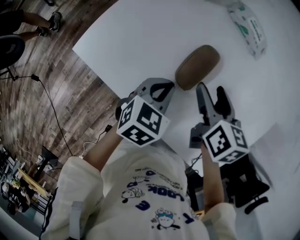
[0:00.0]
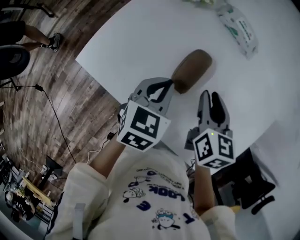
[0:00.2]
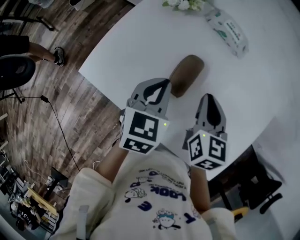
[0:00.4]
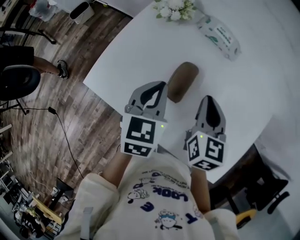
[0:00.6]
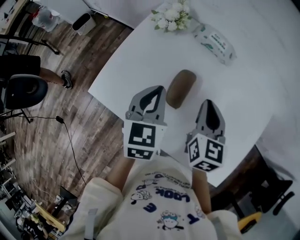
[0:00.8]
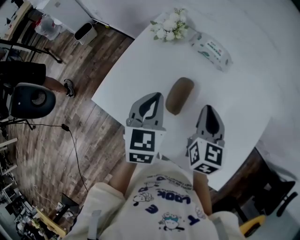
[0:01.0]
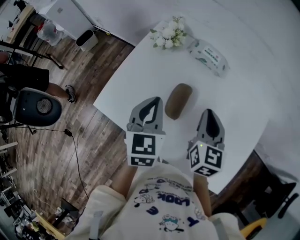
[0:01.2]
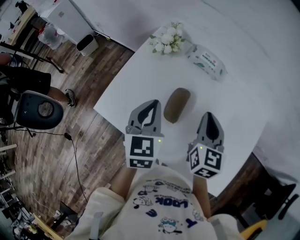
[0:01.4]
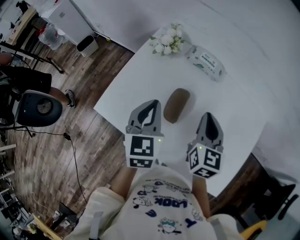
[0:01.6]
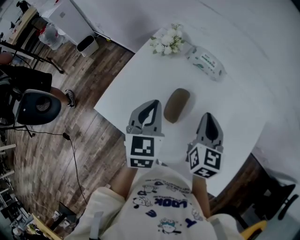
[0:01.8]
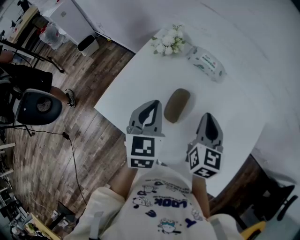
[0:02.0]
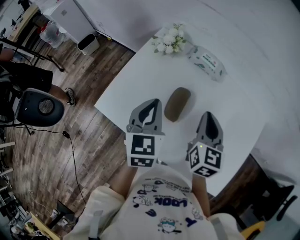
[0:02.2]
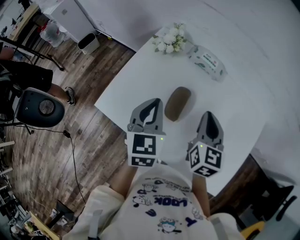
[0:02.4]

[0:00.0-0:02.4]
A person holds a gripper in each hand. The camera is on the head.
0:00.0 to 0:01.2: Both grippers travel together upward, about 15 cm. The left gripper turns by roughly 30 degrees. Meanwhile the right gripper turns by about 30 degrees, and closes up.
0:01.2 to 0:02.4: The grippers stay close to where they were, moving slightly.

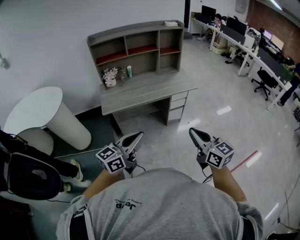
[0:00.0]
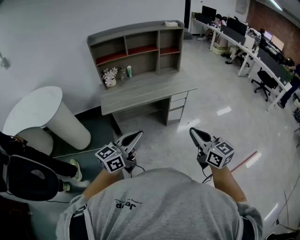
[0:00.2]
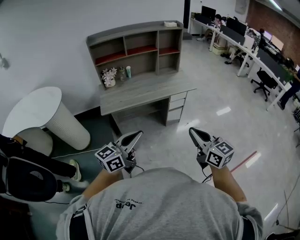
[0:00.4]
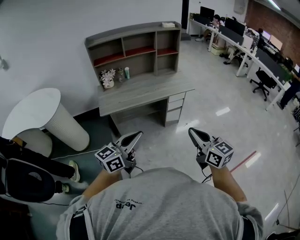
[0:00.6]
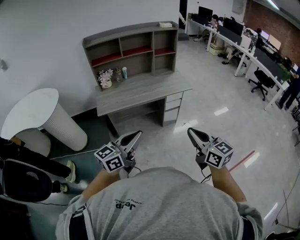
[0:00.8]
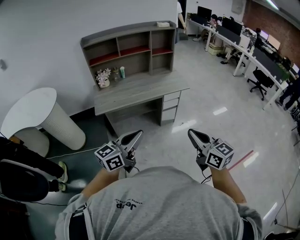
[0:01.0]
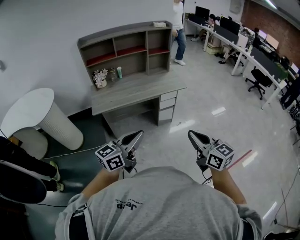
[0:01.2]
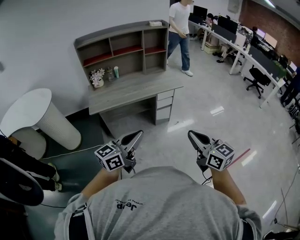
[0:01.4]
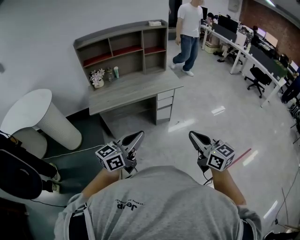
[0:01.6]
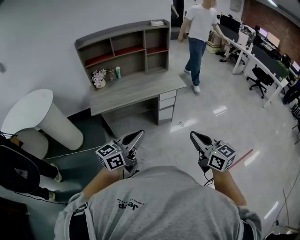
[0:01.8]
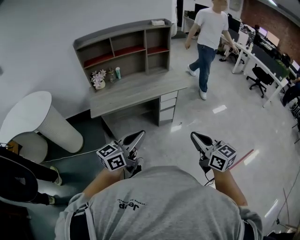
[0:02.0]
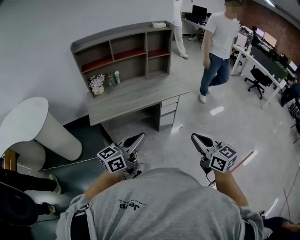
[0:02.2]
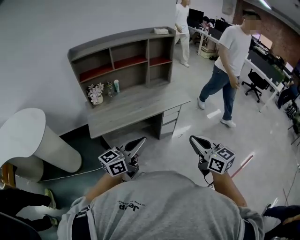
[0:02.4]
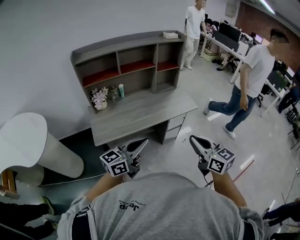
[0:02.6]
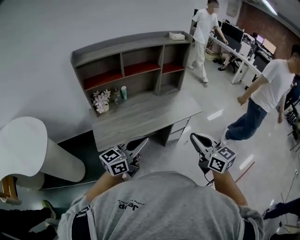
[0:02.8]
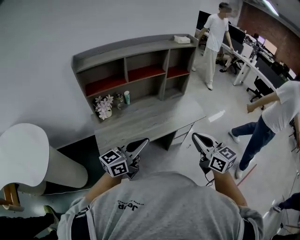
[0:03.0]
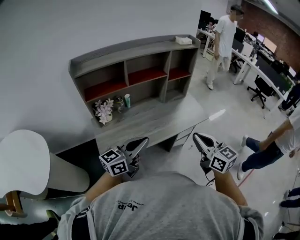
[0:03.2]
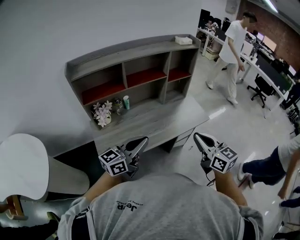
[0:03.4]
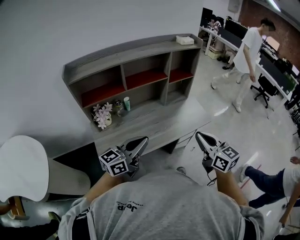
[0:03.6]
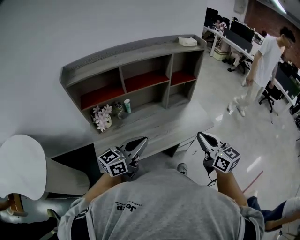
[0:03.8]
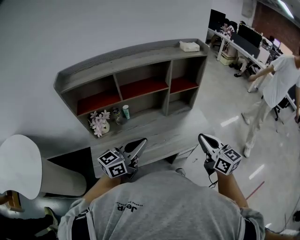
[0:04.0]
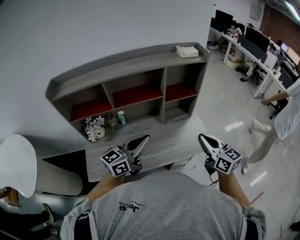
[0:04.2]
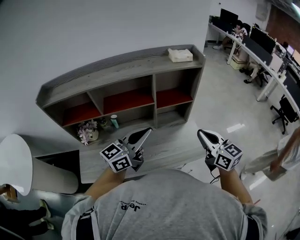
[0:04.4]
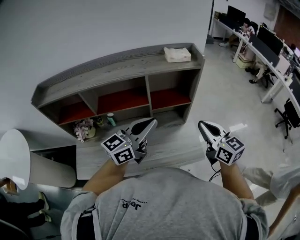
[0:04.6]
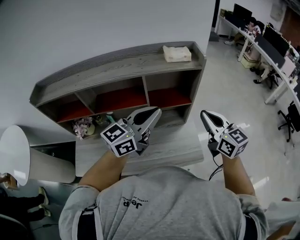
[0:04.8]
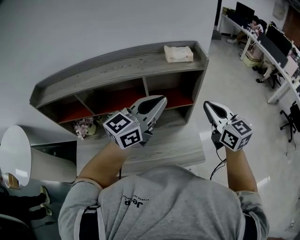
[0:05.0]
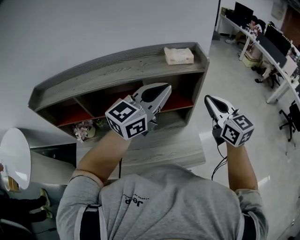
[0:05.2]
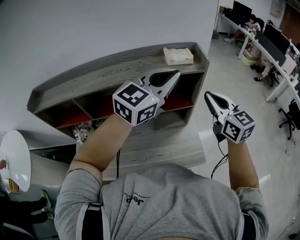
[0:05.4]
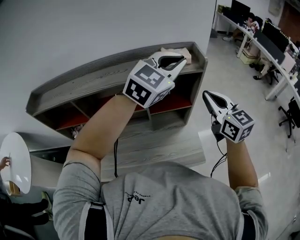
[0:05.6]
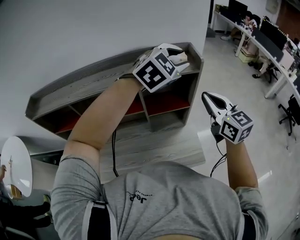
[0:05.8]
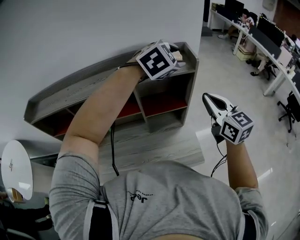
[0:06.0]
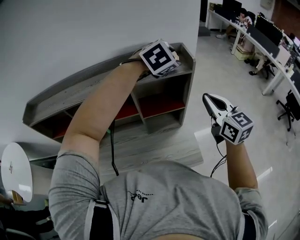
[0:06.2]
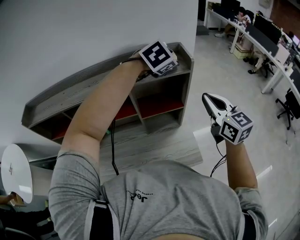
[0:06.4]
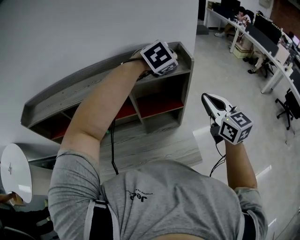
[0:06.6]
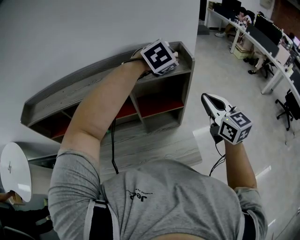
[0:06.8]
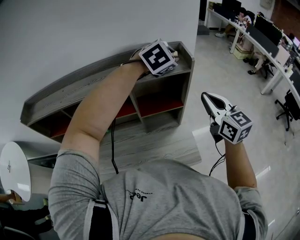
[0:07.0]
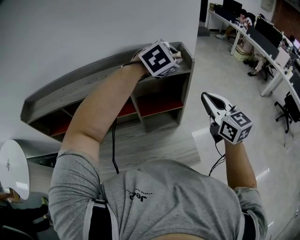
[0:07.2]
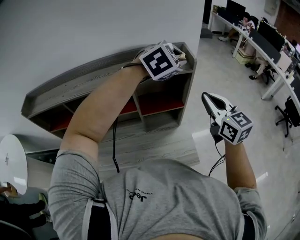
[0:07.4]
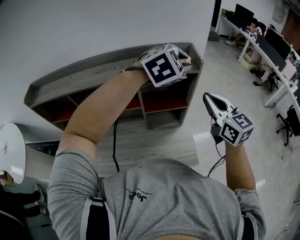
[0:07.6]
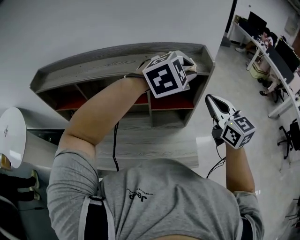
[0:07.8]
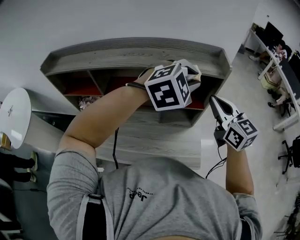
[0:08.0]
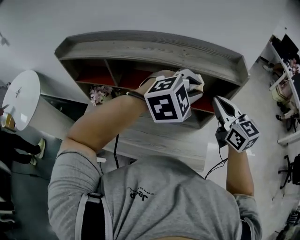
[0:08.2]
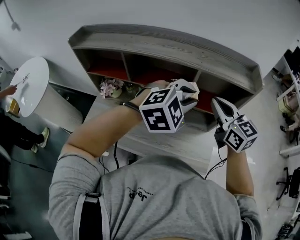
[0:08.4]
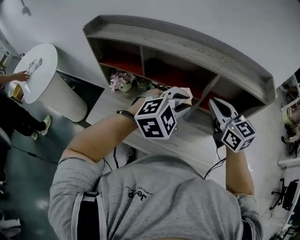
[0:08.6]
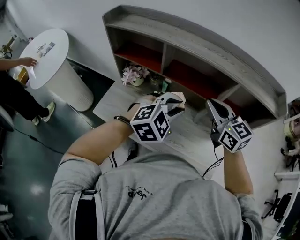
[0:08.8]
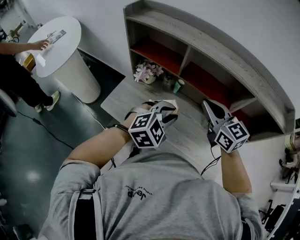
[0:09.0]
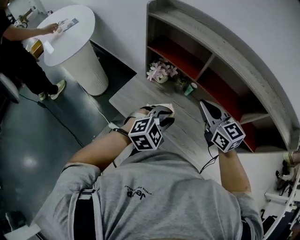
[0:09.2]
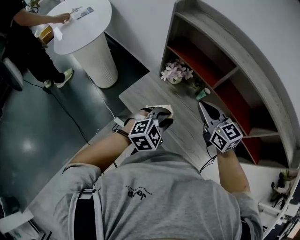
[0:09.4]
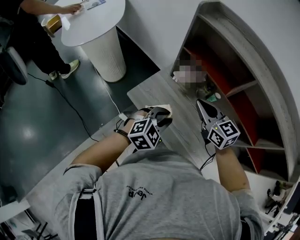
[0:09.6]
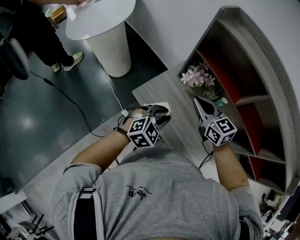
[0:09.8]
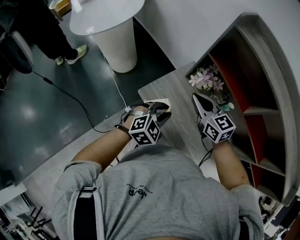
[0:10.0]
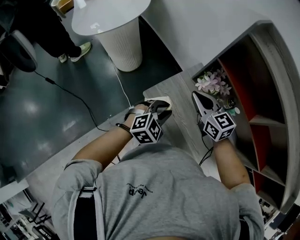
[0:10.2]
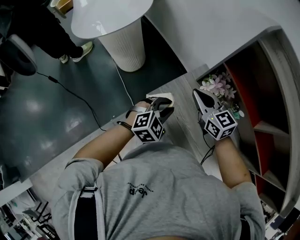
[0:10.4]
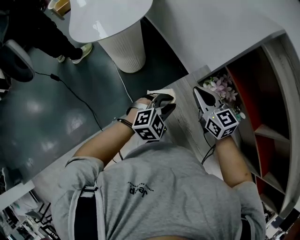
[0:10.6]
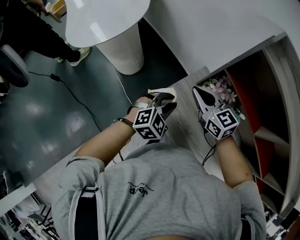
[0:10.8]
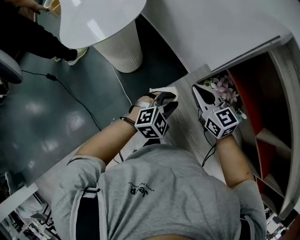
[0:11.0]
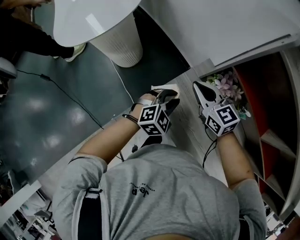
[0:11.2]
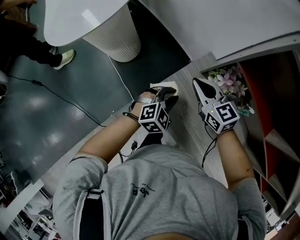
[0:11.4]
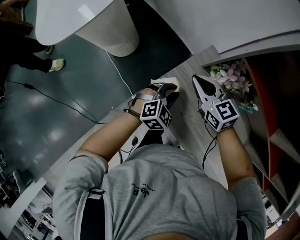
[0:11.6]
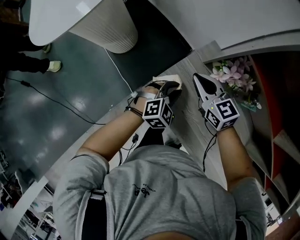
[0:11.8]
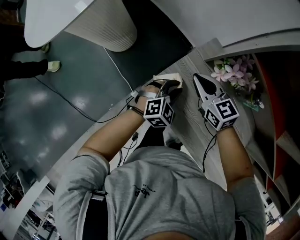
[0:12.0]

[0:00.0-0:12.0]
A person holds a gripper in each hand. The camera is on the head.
0:00.0 to 0:01.6: The grippers both shift to the right by some 10 cm.
0:01.6 to 0:03.0: The two grippers travel together, forward and to the left, roughly 40 cm.
0:03.0 to 0:04.4: Both grippers travel together forward, roughly 35 cm.
0:04.4 to 0:06.0: The left gripper travels forward and to the right by about 40 cm, angles its fingers downward, by about 40 degrees, and opens. The right gripper shifts roughly 20 cm forward and upward.
0:06.0 to 0:07.6: The left gripper closes.
0:07.6 to 0:09.0: The pair of grippers is taken roughly 40 cm. The left gripper rotates roughly 40 degrees. Meanwhile the right gripper swivels approximately 40 degrees.
0:09.0 to 0:10.4: The right gripper moves approximately 50 cm, and swivels approximately 30 degrees. Meanwhile the left gripper changes place by about 40 cm, and changes its angle by roughly 30 degrees.
0:10.4 to 0:12.0: The left gripper goes some 20 cm downward and forward; the right gripper moves downward, roughly 15 cm.

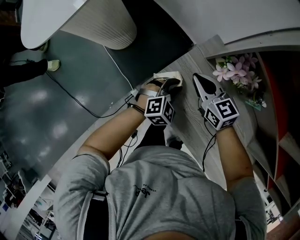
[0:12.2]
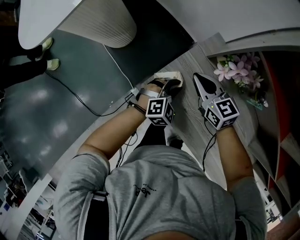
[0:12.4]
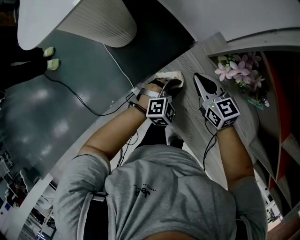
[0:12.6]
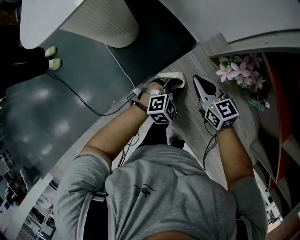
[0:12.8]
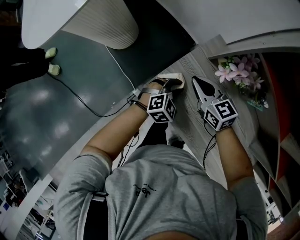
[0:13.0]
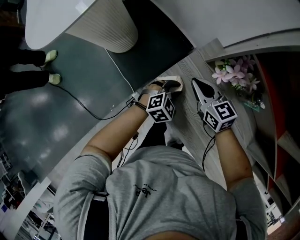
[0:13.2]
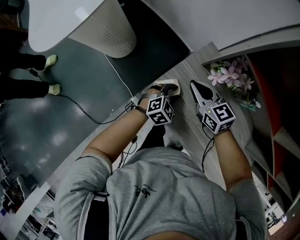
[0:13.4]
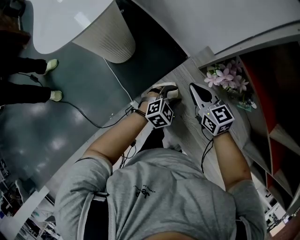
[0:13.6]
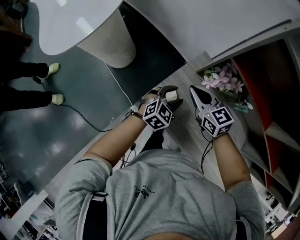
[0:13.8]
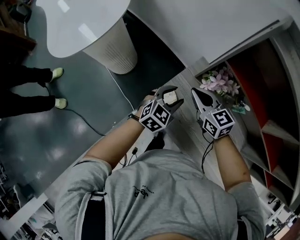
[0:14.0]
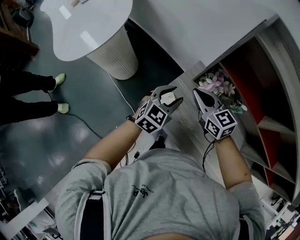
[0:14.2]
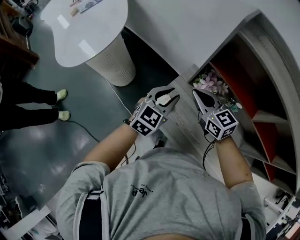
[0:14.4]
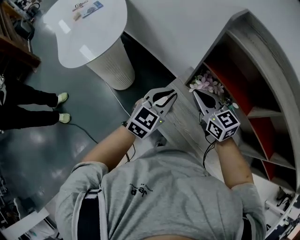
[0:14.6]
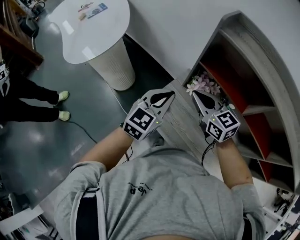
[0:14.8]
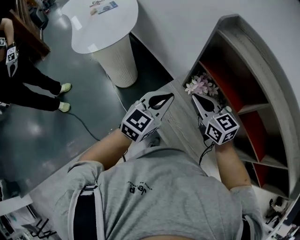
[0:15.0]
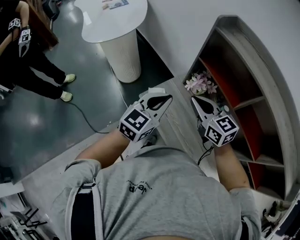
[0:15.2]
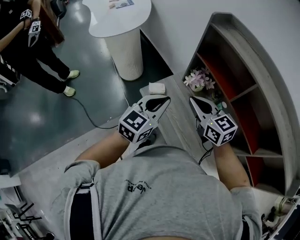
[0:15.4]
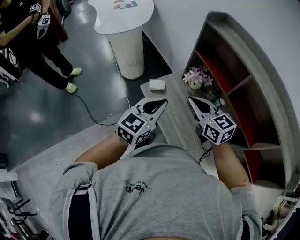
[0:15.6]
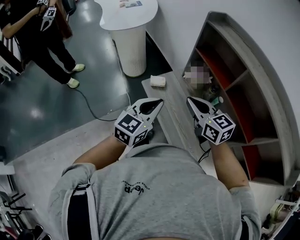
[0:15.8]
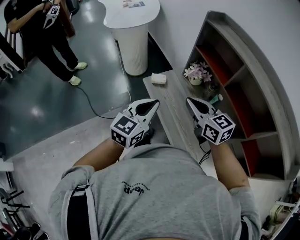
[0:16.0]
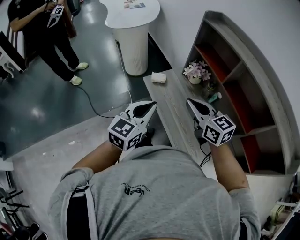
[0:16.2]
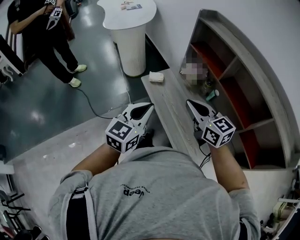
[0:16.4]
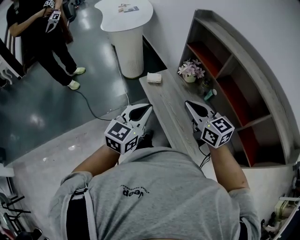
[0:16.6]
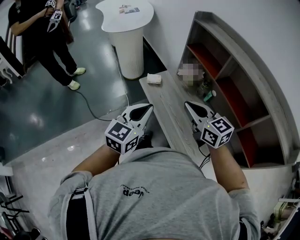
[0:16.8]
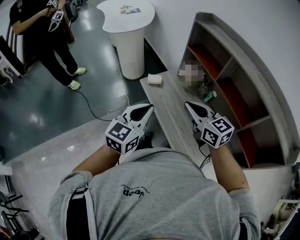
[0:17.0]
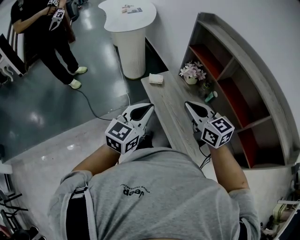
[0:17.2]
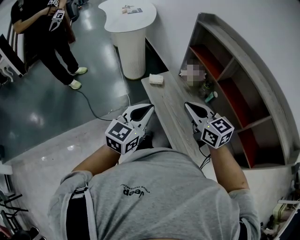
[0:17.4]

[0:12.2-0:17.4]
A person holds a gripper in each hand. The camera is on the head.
0:12.2 to 0:14.0: The grippers both shift upward by roughly 10 cm. The left gripper rotates approximately 20 degrees, and opens up.
0:14.0 to 0:15.6: Both grippers move backward and upward, roughly 35 cm. The left gripper rotates approximately 30 degrees, and closes.
0:15.6 to 0:17.4: The two grippers go about 15 cm backward.

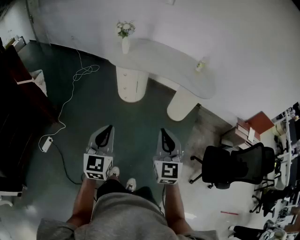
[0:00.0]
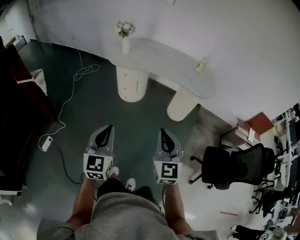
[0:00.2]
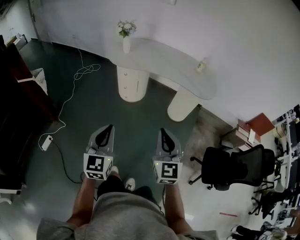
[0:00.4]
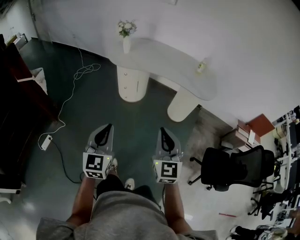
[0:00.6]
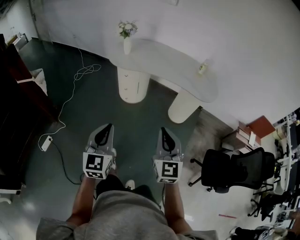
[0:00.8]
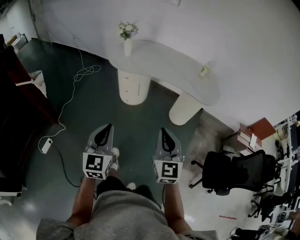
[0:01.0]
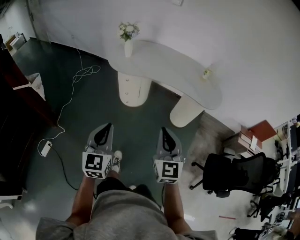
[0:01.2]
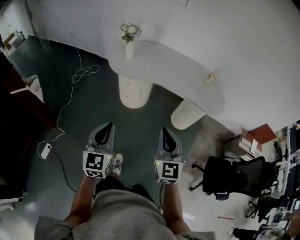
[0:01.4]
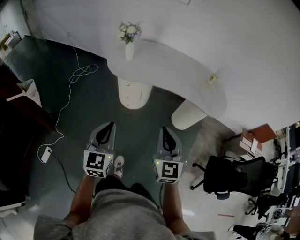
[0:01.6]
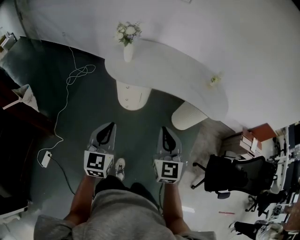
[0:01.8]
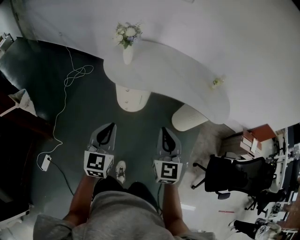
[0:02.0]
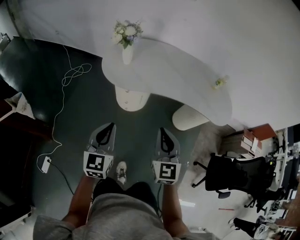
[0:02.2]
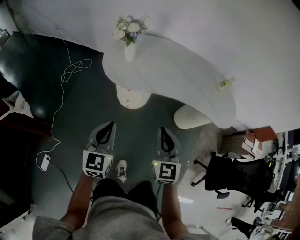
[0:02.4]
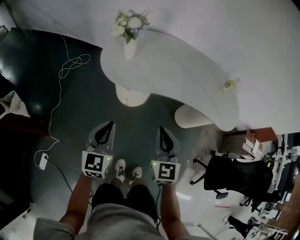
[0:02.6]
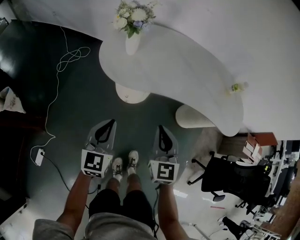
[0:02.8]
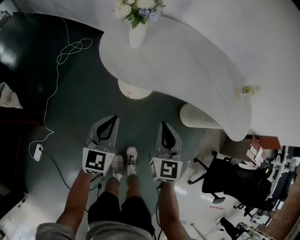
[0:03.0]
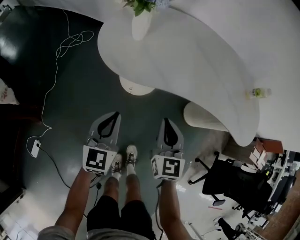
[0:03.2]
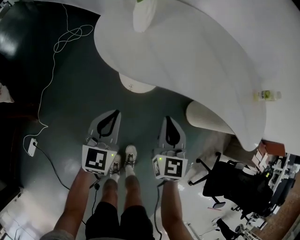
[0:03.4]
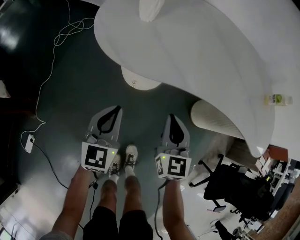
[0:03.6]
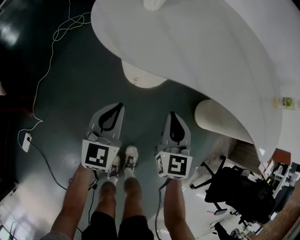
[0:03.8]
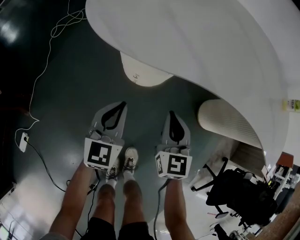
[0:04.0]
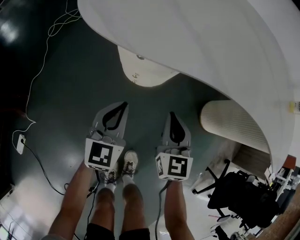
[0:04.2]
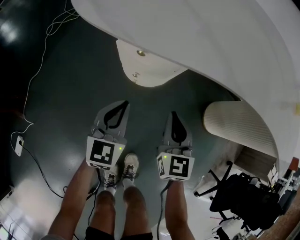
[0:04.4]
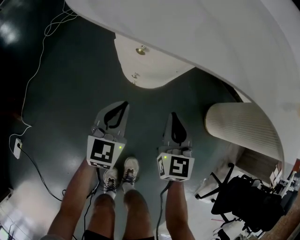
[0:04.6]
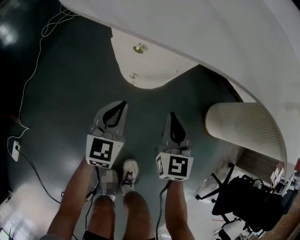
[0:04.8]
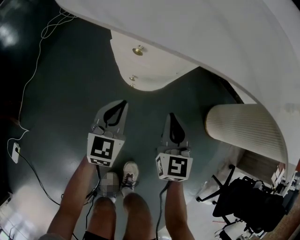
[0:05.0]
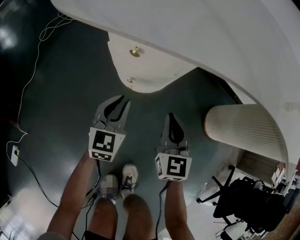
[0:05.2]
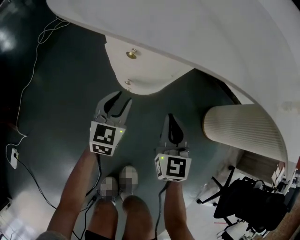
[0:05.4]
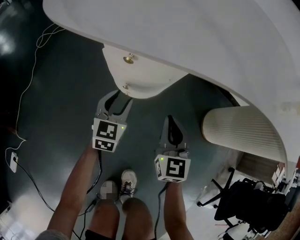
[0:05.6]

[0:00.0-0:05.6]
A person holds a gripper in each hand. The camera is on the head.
0:00.0 to 0:01.4: The grippers both shift forward by about 15 cm.
0:01.4 to 0:02.8: The right gripper travels forward, downward and to the left by about 35 cm. The left gripper heads forward and downward, covering approximately 35 cm.
0:02.8 to 0:04.2: Both grippers move downward, approximately 40 cm.
0:04.2 to 0:05.6: The right gripper moves downward, about 10 cm. Meanwhile the left gripper goes about 20 cm downward and forward, and opens up.
